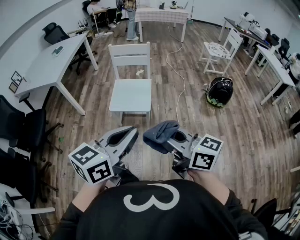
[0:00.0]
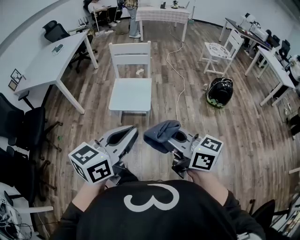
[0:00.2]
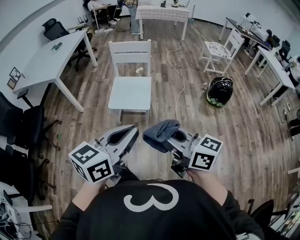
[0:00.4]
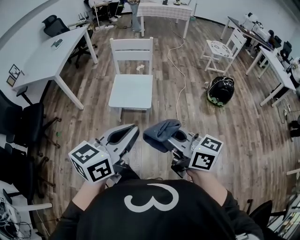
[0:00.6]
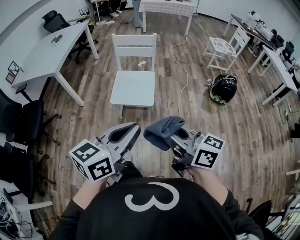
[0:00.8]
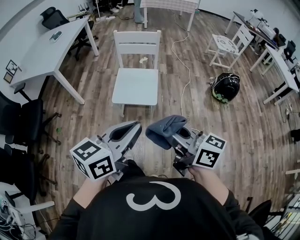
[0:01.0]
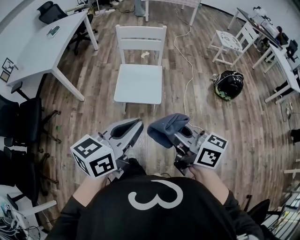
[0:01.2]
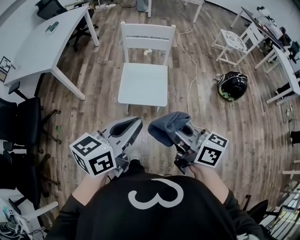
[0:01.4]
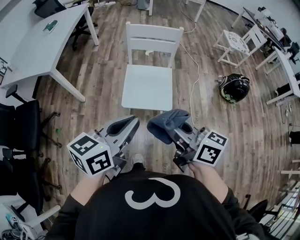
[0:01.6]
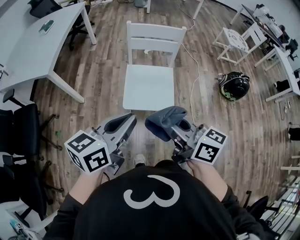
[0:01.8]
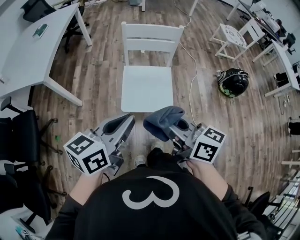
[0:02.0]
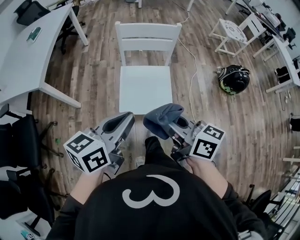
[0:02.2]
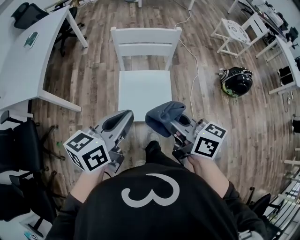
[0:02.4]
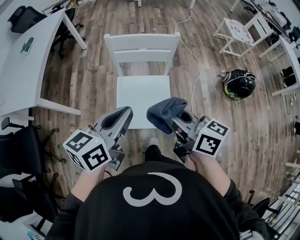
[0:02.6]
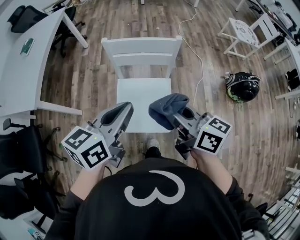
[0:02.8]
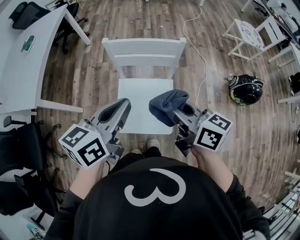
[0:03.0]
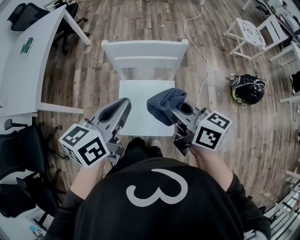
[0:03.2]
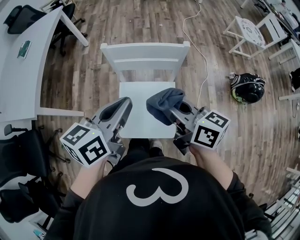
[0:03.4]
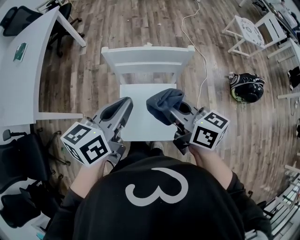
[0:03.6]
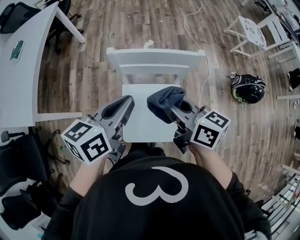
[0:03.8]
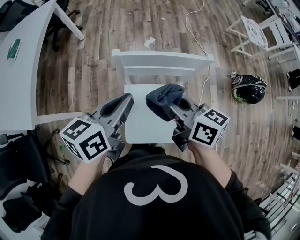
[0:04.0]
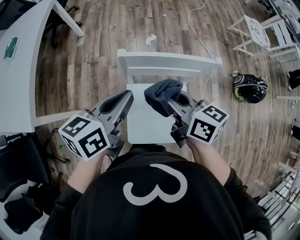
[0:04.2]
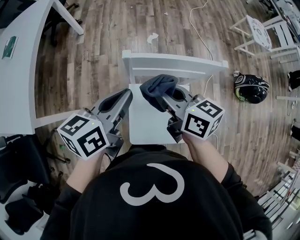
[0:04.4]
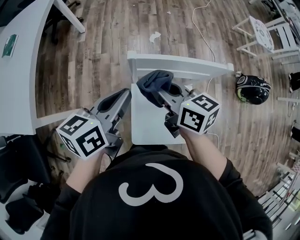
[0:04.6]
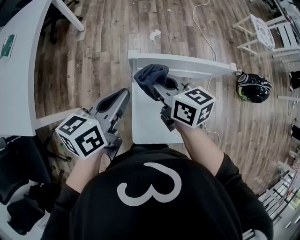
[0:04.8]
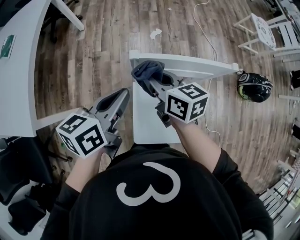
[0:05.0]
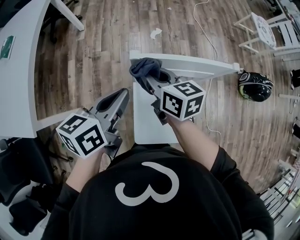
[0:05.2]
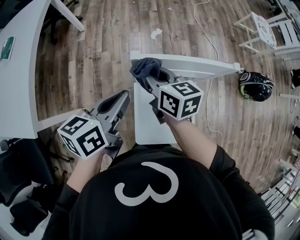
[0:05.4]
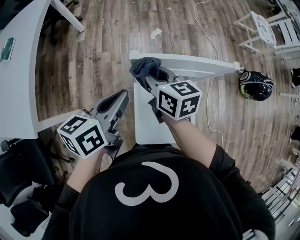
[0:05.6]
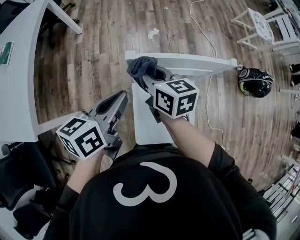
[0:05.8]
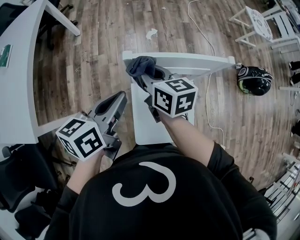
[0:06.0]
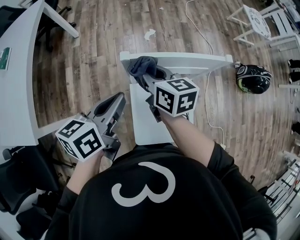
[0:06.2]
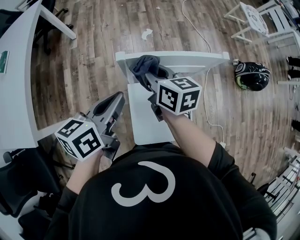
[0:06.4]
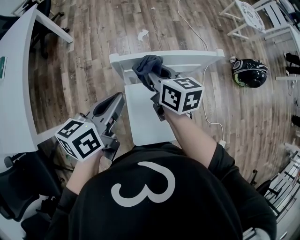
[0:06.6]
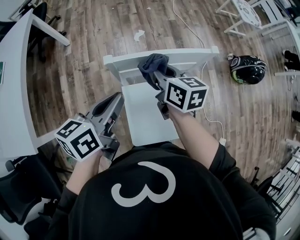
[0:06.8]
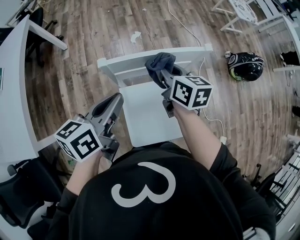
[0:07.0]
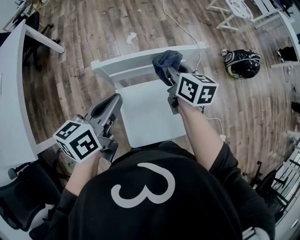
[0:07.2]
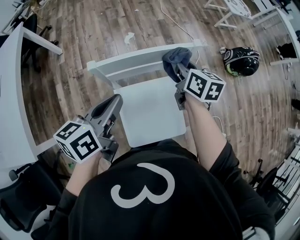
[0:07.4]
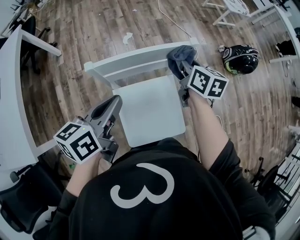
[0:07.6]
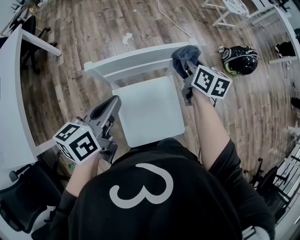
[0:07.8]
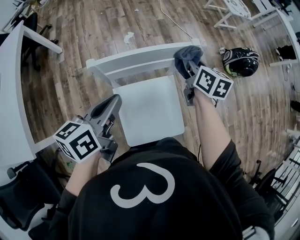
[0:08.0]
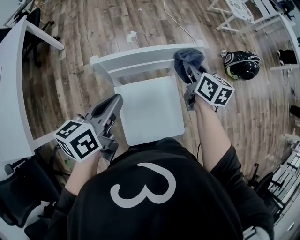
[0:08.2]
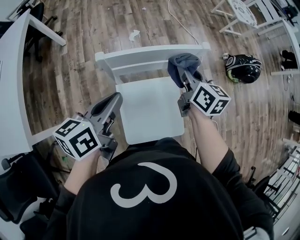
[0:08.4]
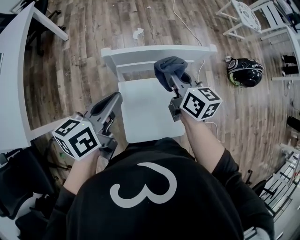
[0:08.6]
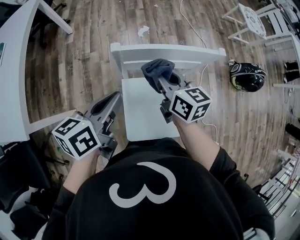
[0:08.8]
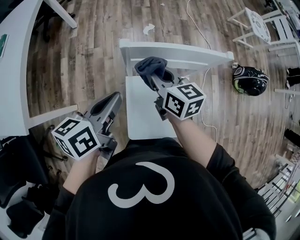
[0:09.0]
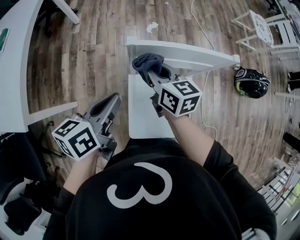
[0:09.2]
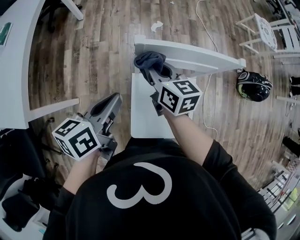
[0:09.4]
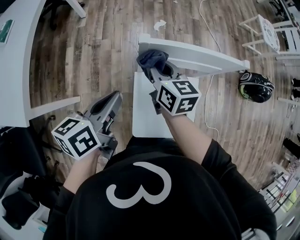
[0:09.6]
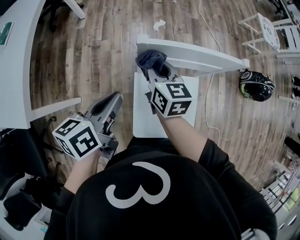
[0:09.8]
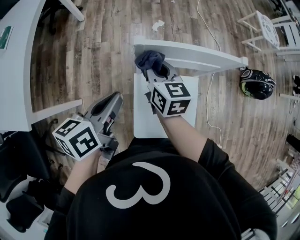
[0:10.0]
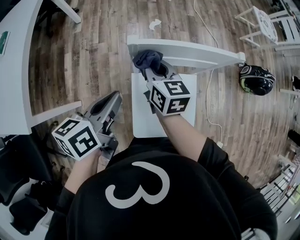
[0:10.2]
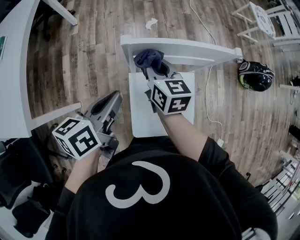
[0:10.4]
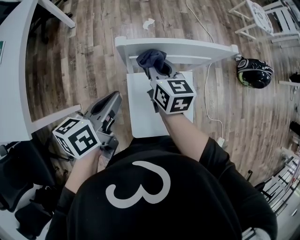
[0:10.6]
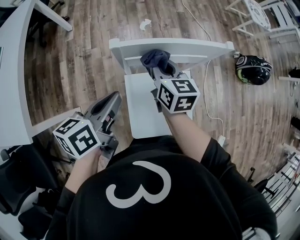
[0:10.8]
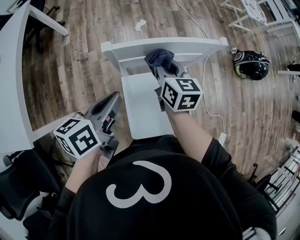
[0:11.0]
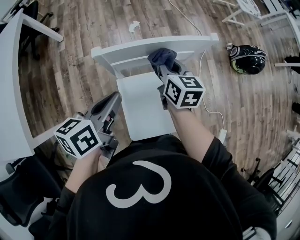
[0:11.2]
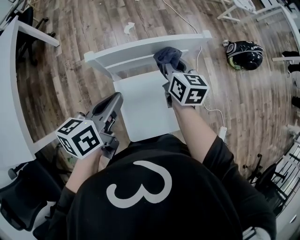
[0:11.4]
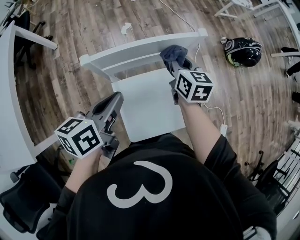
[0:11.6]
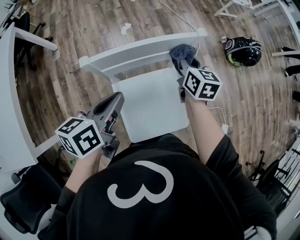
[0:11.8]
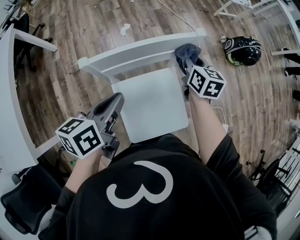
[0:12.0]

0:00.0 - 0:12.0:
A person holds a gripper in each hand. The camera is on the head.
0:00.0 - 0:01.6: The two grippers go about 30 cm forward and to the left.
0:01.6 - 0:03.0: The grippers both shift forward by roughly 30 cm.
0:03.0 - 0:04.4: The right gripper is displaced forward and to the left by roughly 25 cm. Meanwhile the left gripper goes roughly 25 cm forward, to the left and downward.
0:04.4 - 0:06.0: The right gripper goes roughly 10 cm forward, downward and to the left.
0:06.0 - 0:07.6: The left gripper is displaced to the right by about 10 cm. The right gripper heads to the right, covering roughly 25 cm, and rotates some 30 degrees.
0:07.6 - 0:09.0: The left gripper goes about 10 cm to the left, while the right gripper goes some 25 cm to the left and backward, and rotates roughly 30 degrees.
0:09.0 - 0:10.4: The grippers make only small movements.
0:10.4 - 0:12.0: The right gripper travels to the right by about 25 cm, and changes its angle by some 20 degrees, while the left gripper moves to the right, some 10 cm.

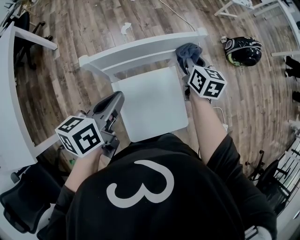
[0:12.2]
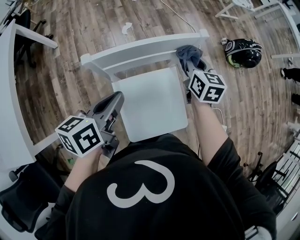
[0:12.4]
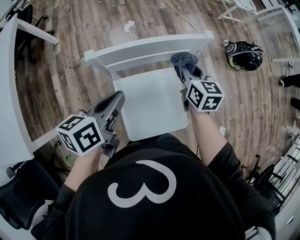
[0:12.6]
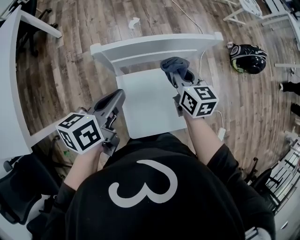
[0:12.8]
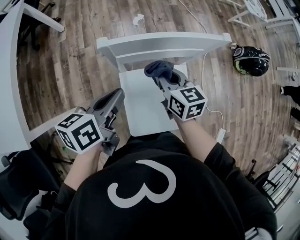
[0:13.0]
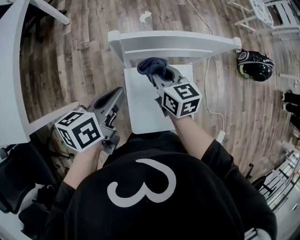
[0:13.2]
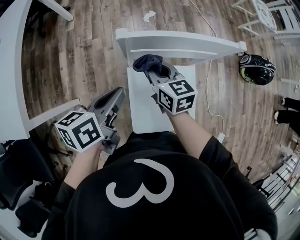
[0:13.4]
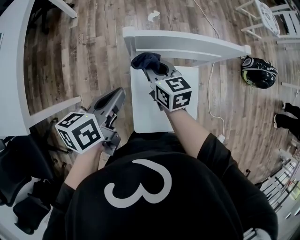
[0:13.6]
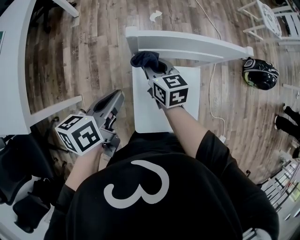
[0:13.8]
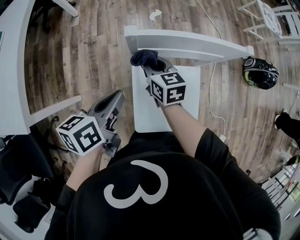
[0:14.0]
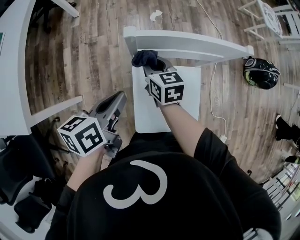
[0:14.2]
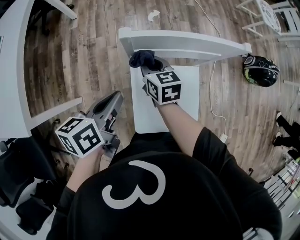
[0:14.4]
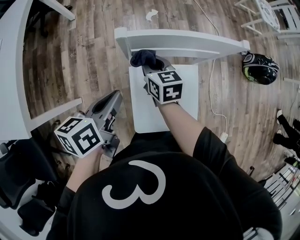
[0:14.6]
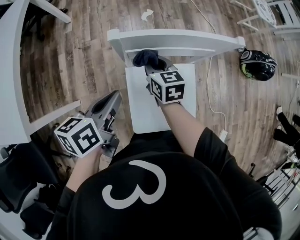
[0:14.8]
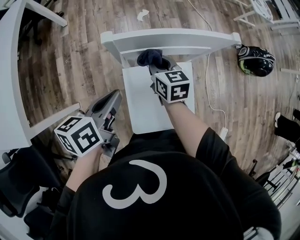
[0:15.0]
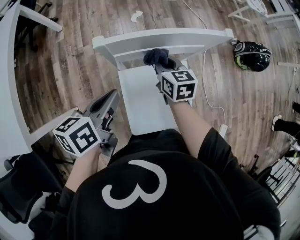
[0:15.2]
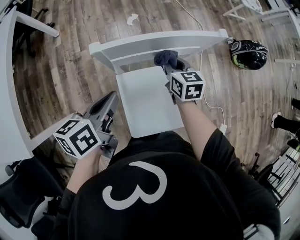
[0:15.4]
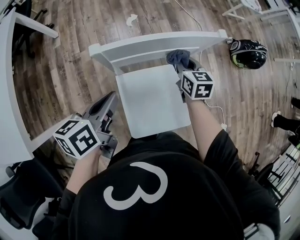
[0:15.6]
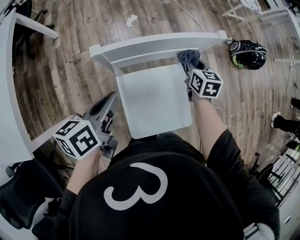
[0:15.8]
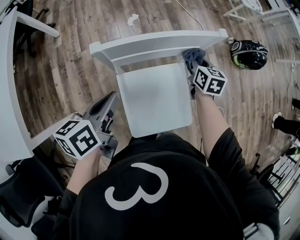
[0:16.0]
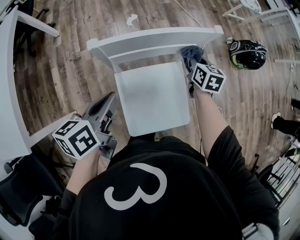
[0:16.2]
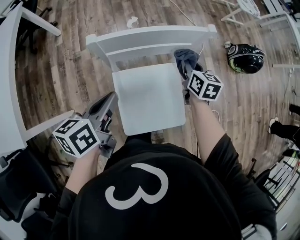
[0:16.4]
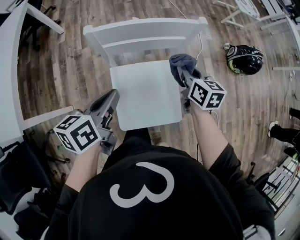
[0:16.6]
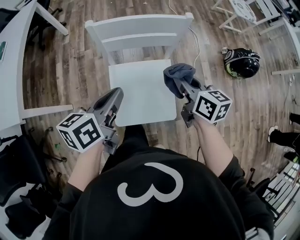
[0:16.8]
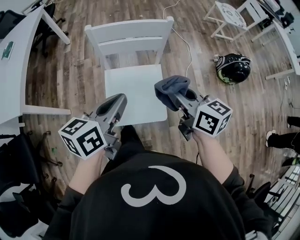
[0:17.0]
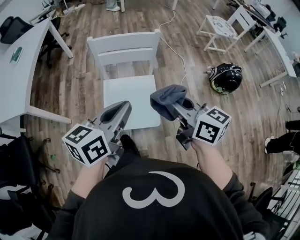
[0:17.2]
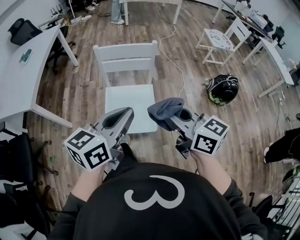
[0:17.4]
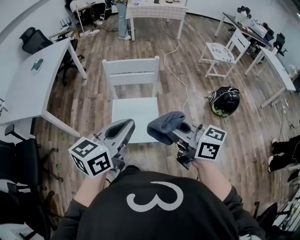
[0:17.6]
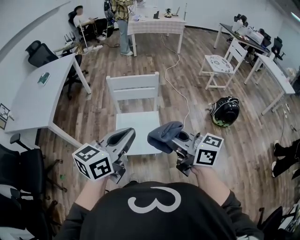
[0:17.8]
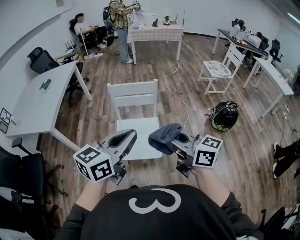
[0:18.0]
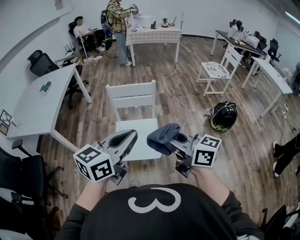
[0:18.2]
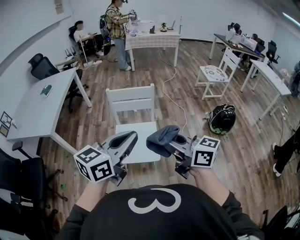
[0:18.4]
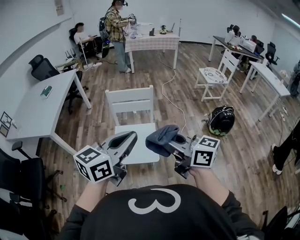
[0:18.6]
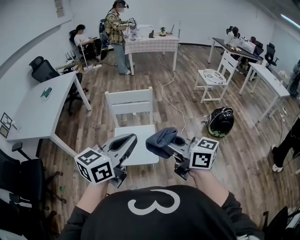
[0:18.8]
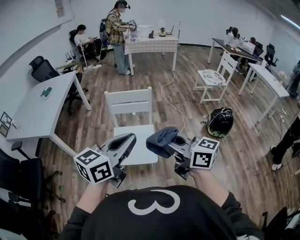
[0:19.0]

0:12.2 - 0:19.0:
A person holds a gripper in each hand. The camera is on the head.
0:12.2 - 0:13.6: The left gripper is displaced to the left by approximately 10 cm. Meanwhile the right gripper shifts about 25 cm to the left, and changes its angle by some 30 degrees.
0:13.6 - 0:15.0: The right gripper shifts approximately 5 cm to the right.
0:15.0 - 0:16.2: The right gripper moves to the right, roughly 20 cm, and turns by some 20 degrees.
0:16.2 - 0:17.6: The right gripper moves roughly 60 cm, and points its fingers roughly 40 degrees further upward. Meanwhile the left gripper shifts by roughly 50 cm, and rotates approximately 30 degrees.
0:17.6 - 0:19.0: The left gripper goes approximately 10 cm upward and backward; the right gripper is displaced backward by roughly 5 cm.

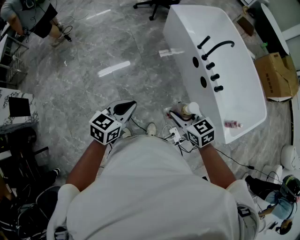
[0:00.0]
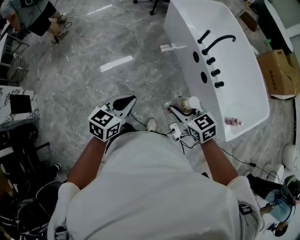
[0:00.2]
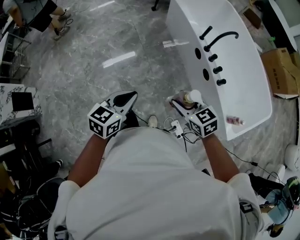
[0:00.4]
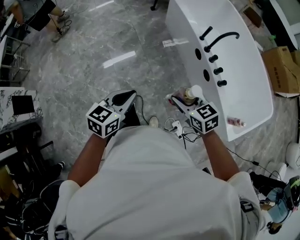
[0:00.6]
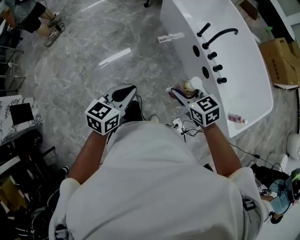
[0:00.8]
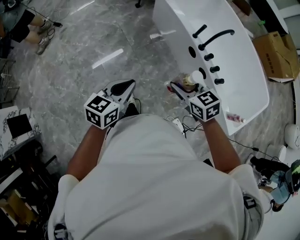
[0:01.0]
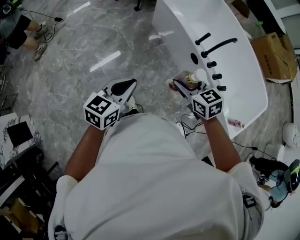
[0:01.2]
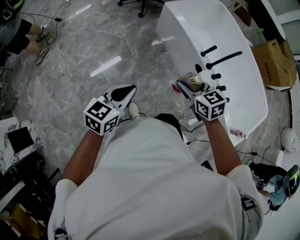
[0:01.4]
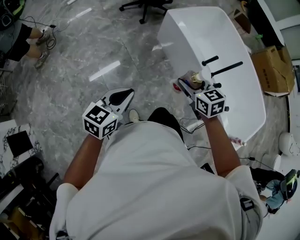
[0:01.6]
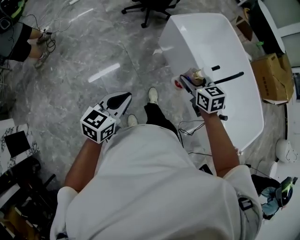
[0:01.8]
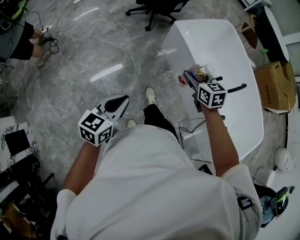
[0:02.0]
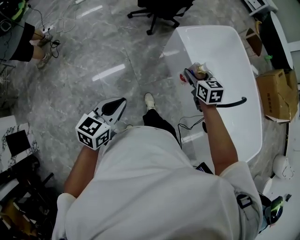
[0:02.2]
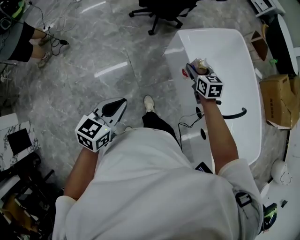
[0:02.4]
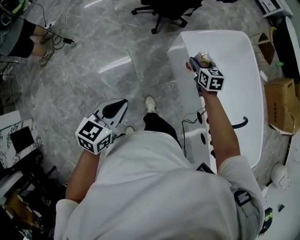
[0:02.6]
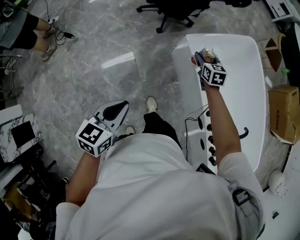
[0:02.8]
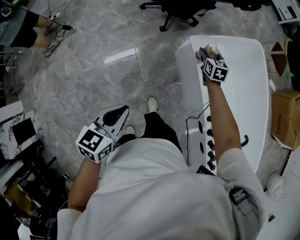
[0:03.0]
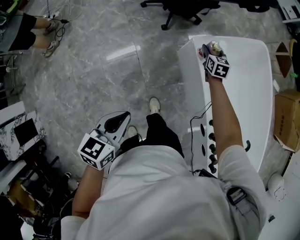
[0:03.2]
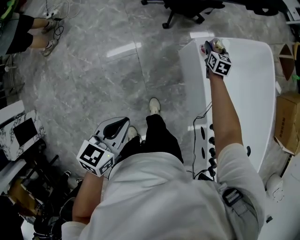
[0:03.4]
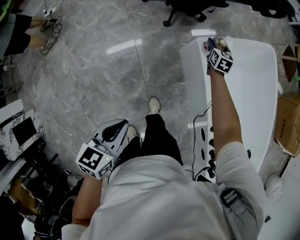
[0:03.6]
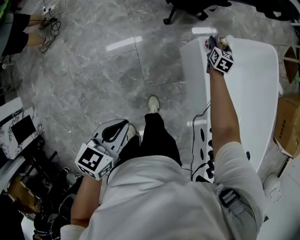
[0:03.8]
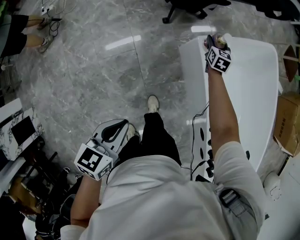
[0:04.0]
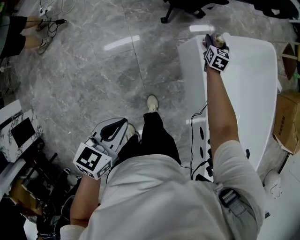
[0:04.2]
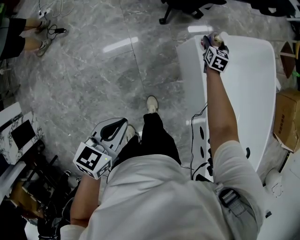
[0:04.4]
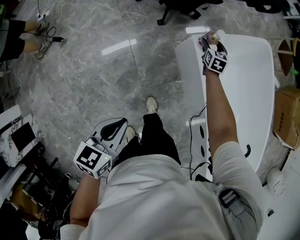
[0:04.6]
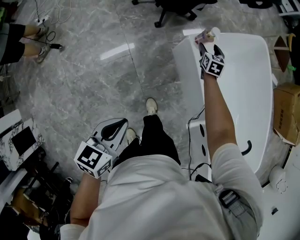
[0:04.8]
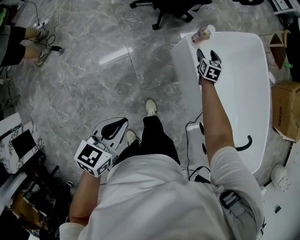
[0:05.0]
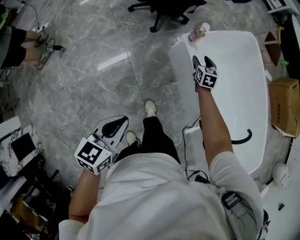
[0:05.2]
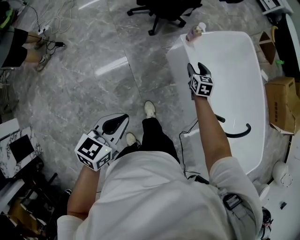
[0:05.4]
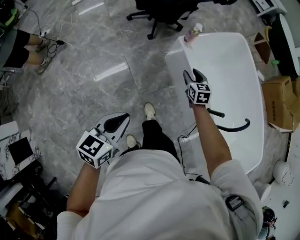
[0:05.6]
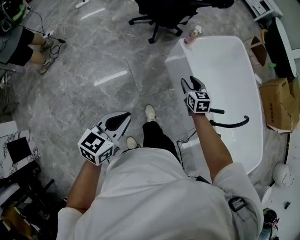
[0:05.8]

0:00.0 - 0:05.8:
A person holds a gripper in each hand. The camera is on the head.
0:00.0 - 0:01.4: Both grippers travel together forward, approximately 30 cm.
0:01.4 - 0:02.8: The left gripper shifts roughly 30 cm forward; the right gripper heads forward, covering some 60 cm.
0:02.8 - 0:04.4: The right gripper moves forward and downward, roughly 25 cm. The left gripper goes roughly 10 cm forward and downward.
0:04.4 - 0:05.8: The left gripper is displaced backward by roughly 15 cm. Meanwhile the right gripper goes some 35 cm backward, and closes its fingers.
